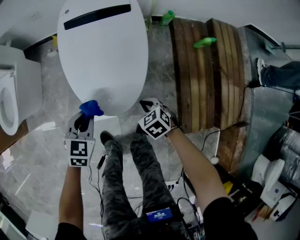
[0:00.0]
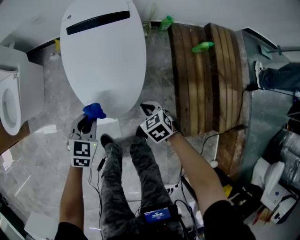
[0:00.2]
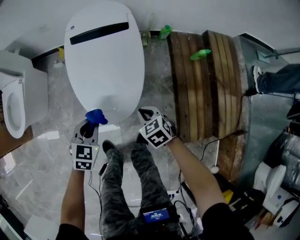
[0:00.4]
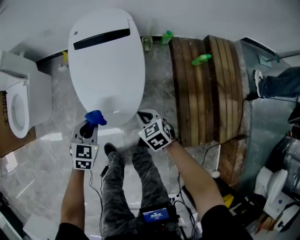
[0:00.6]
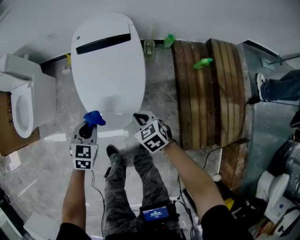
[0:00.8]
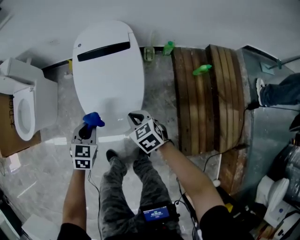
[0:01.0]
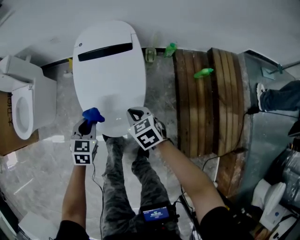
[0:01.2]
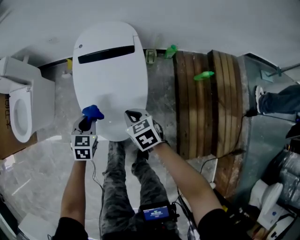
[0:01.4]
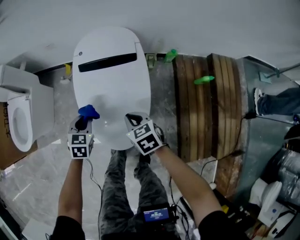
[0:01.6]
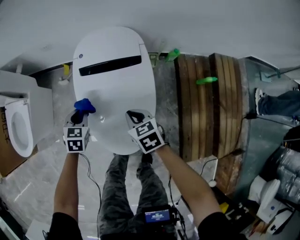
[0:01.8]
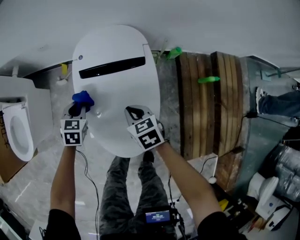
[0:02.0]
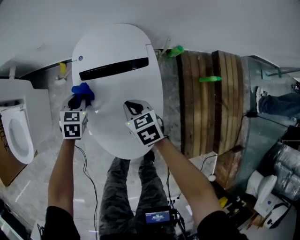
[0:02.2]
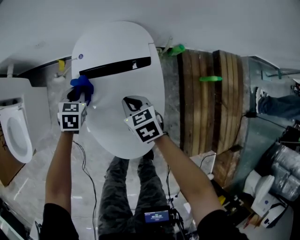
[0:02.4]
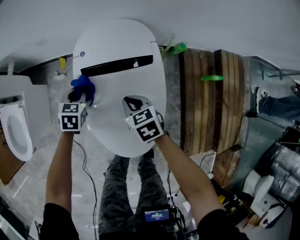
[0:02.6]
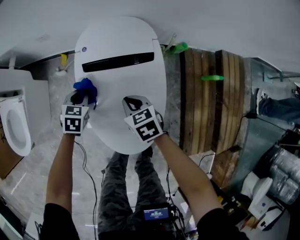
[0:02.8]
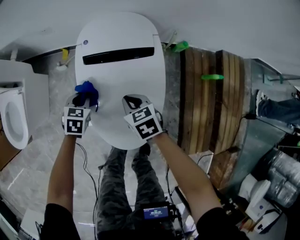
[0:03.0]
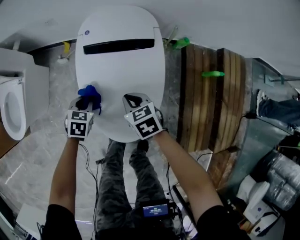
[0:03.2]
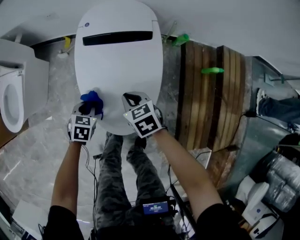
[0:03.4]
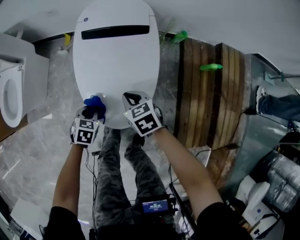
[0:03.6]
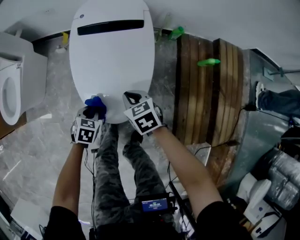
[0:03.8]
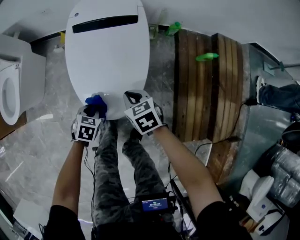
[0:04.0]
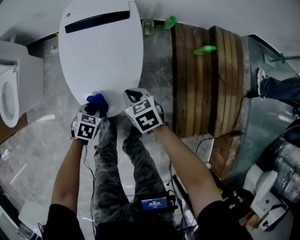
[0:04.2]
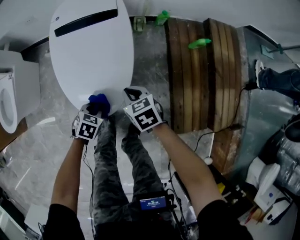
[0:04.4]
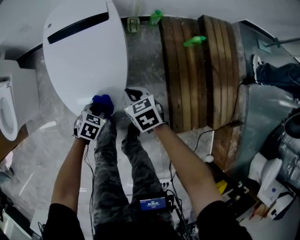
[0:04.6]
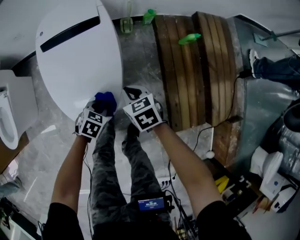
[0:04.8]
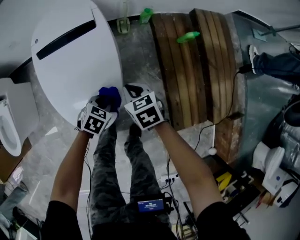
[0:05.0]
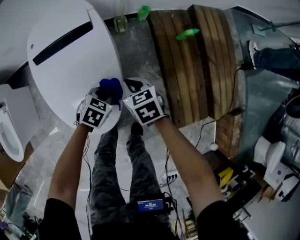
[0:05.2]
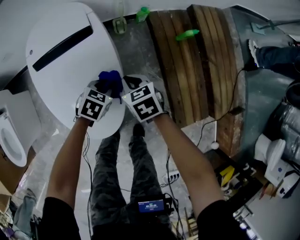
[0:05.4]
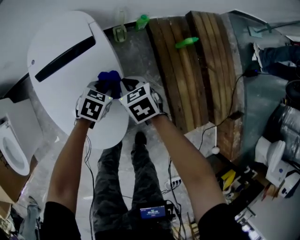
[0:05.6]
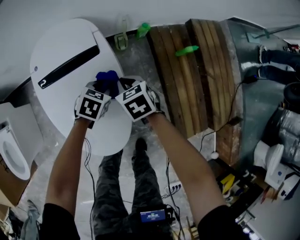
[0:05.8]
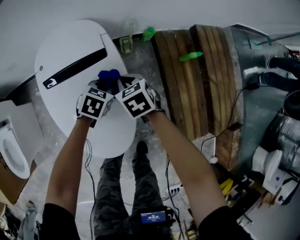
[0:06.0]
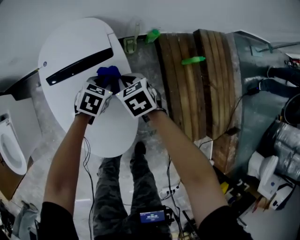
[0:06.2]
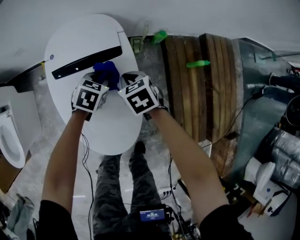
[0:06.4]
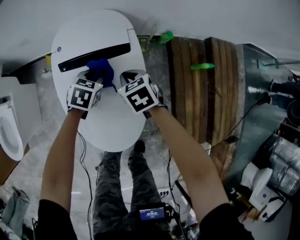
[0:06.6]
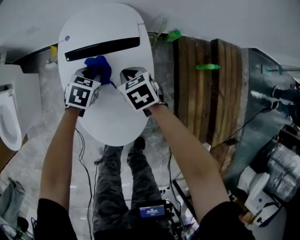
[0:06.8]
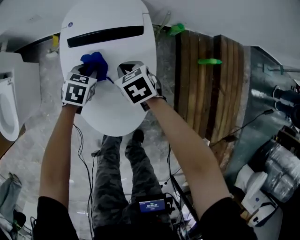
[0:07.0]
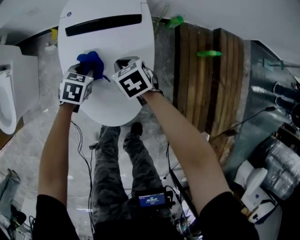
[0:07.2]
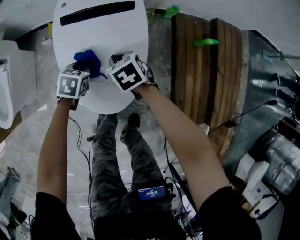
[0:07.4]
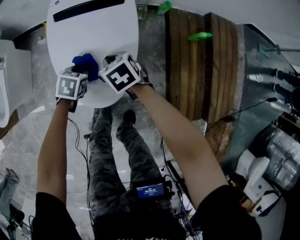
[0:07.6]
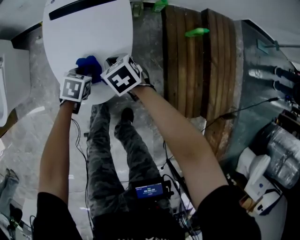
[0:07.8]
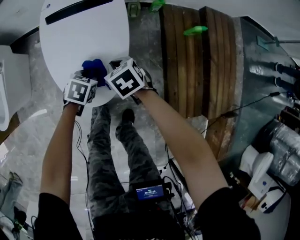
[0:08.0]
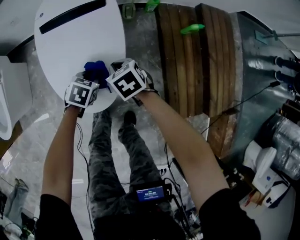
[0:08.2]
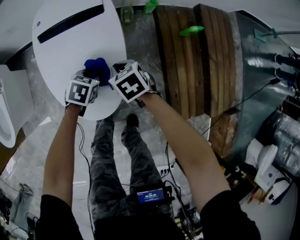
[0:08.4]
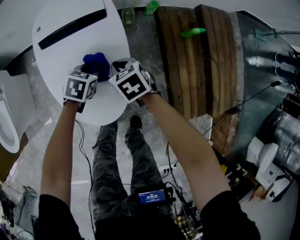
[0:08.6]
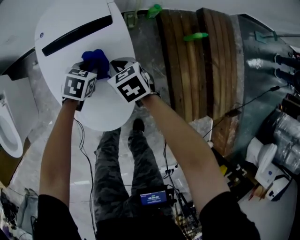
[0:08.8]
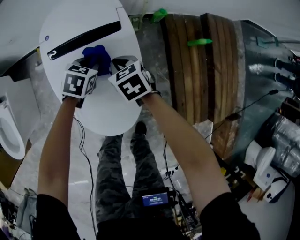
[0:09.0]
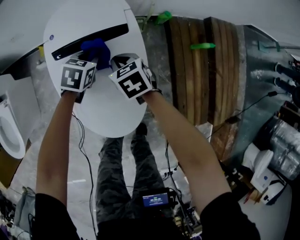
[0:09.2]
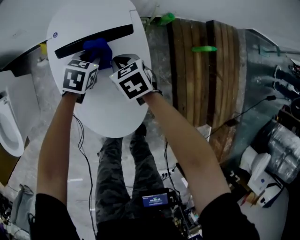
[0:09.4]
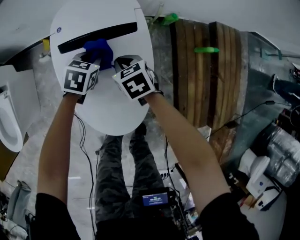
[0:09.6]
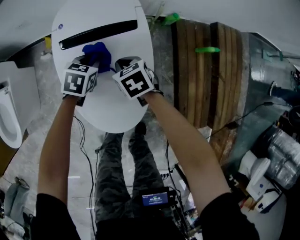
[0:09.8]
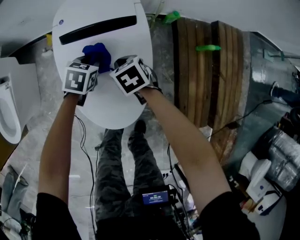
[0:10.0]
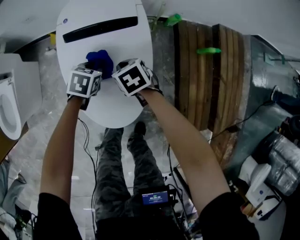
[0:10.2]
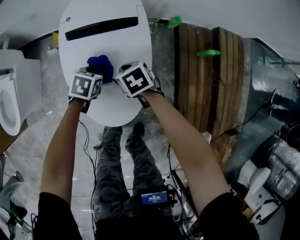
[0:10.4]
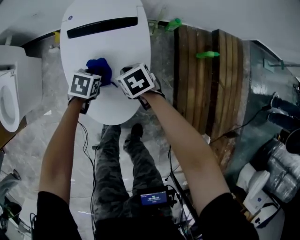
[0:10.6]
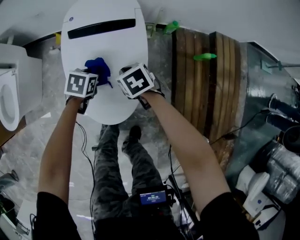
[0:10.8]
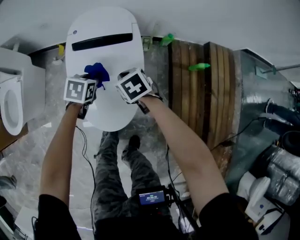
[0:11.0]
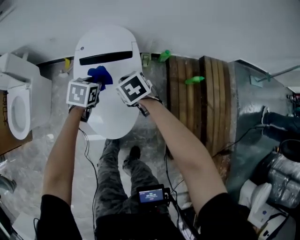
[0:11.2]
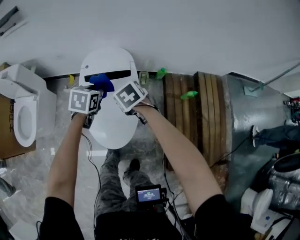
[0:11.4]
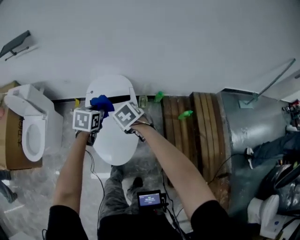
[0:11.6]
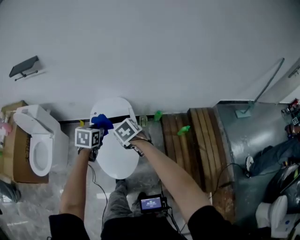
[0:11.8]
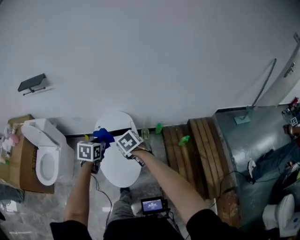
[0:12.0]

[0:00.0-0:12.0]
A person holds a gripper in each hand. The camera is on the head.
0:00.0 to 0:01.6: The right gripper heads forward and upward, covering roughly 20 cm. Meanwhile the left gripper goes about 15 cm forward.
0:01.6 to 0:03.0: The right gripper moves forward, roughly 10 cm; the left gripper travels forward and downward by about 15 cm.
0:03.0 to 0:04.4: Both grippers move backward and to the right, roughly 25 cm.
0:04.4 to 0:06.0: Both grippers travel together forward, about 25 cm.
0:06.0 to 0:07.6: Both grippers move backward and to the left, roughly 20 cm.
0:07.6 to 0:09.0: Both grippers travel together forward, some 15 cm.
0:09.0 to 0:10.4: The grippers both shift backward by roughly 10 cm.
0:10.4 to 0:12.0: The grippers both shift upward by roughly 40 cm. The left gripper turns by roughly 20 degrees.

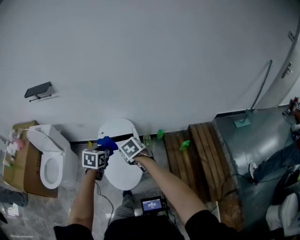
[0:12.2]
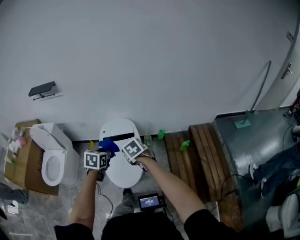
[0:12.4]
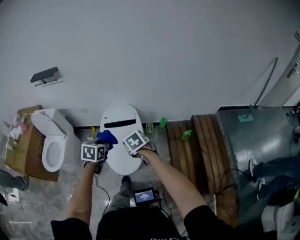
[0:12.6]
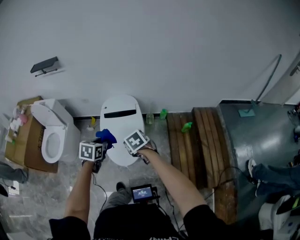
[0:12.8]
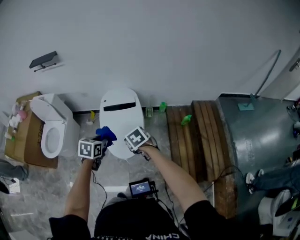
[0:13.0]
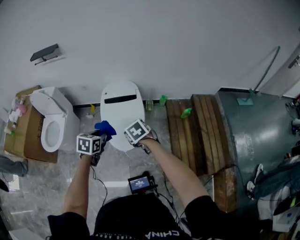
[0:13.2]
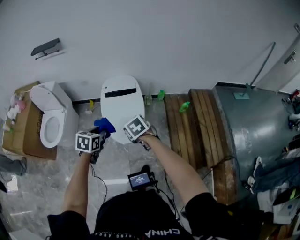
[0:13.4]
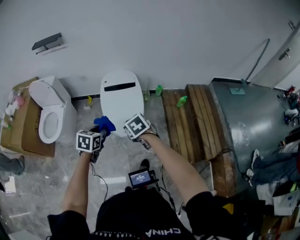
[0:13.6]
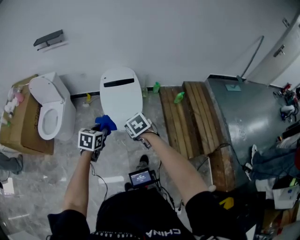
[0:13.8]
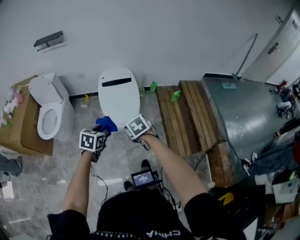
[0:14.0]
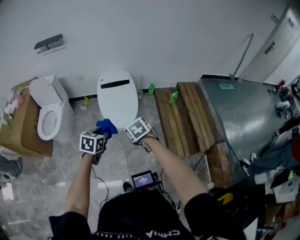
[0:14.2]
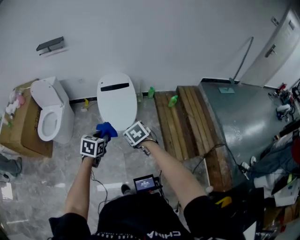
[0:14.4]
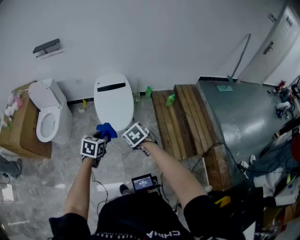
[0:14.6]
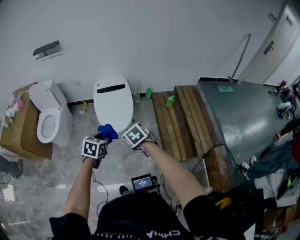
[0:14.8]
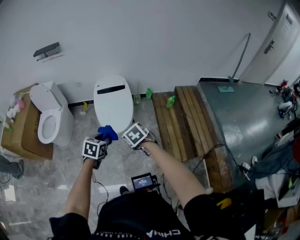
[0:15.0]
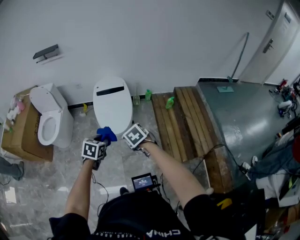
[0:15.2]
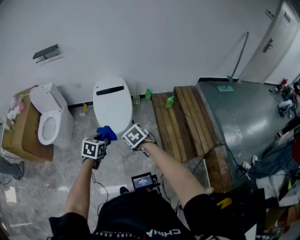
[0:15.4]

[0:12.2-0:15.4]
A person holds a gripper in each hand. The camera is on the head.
0:12.2 to 0:13.8: Both grippers move backward and to the left, some 35 cm.
0:13.8 to 0:15.4: The two grippers go roughly 15 cm backward and to the right.

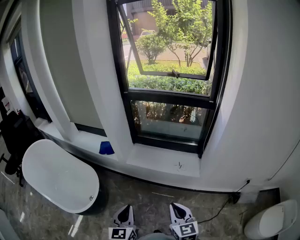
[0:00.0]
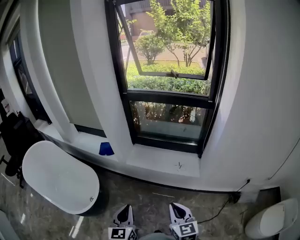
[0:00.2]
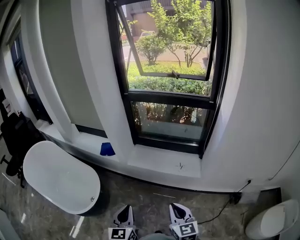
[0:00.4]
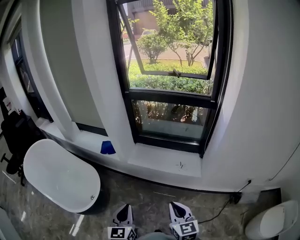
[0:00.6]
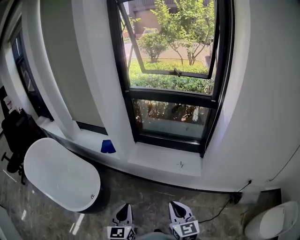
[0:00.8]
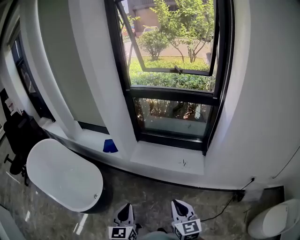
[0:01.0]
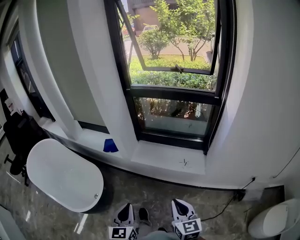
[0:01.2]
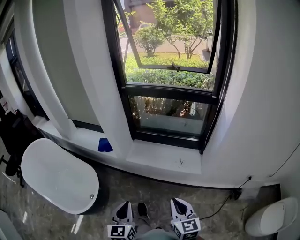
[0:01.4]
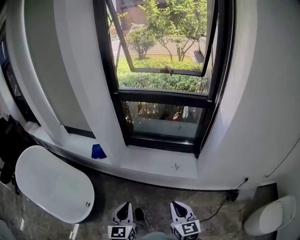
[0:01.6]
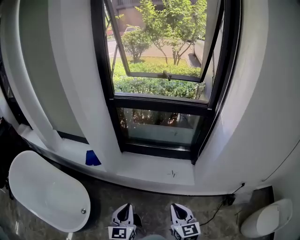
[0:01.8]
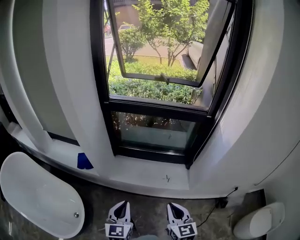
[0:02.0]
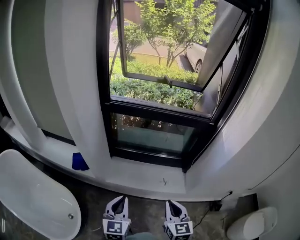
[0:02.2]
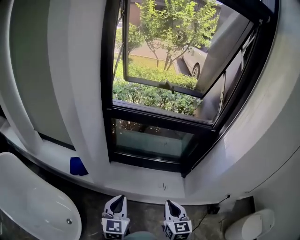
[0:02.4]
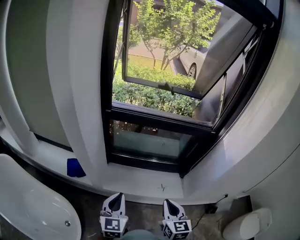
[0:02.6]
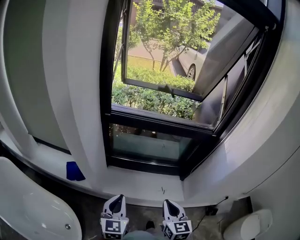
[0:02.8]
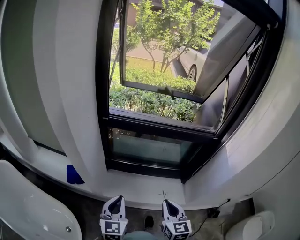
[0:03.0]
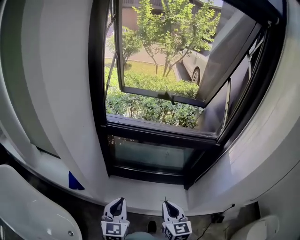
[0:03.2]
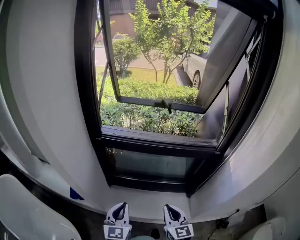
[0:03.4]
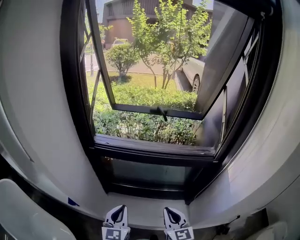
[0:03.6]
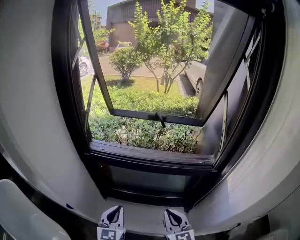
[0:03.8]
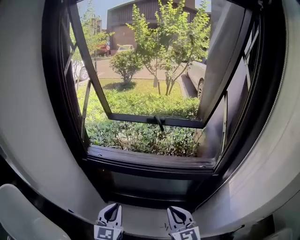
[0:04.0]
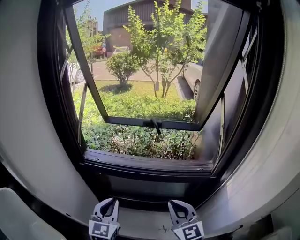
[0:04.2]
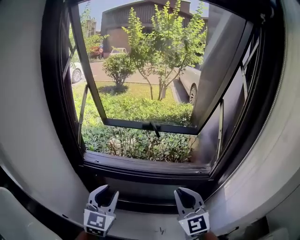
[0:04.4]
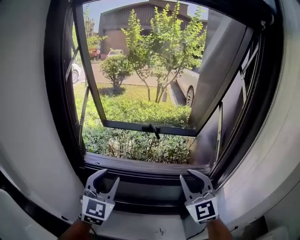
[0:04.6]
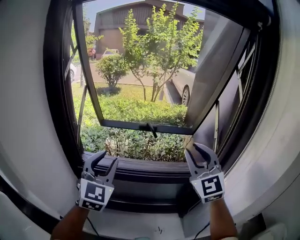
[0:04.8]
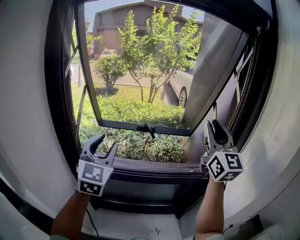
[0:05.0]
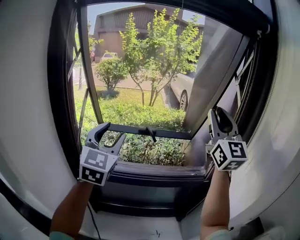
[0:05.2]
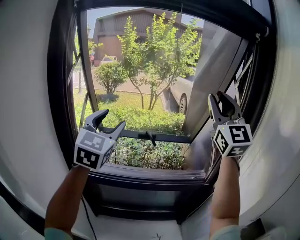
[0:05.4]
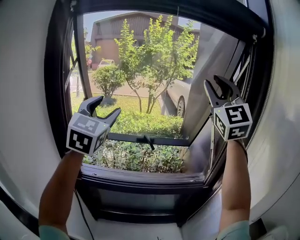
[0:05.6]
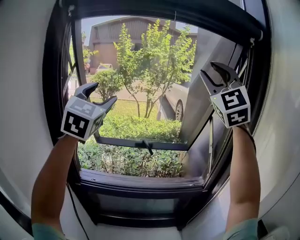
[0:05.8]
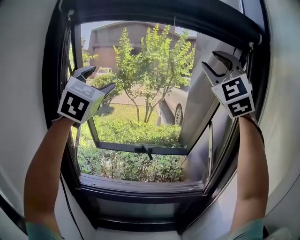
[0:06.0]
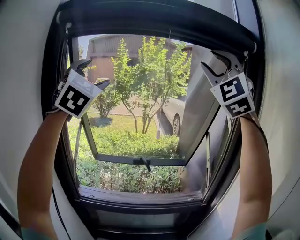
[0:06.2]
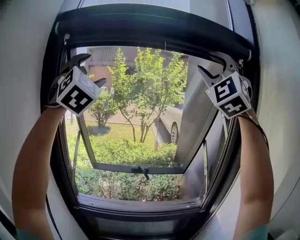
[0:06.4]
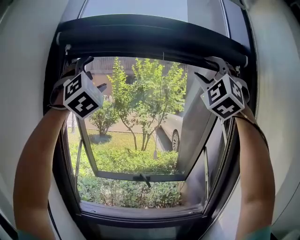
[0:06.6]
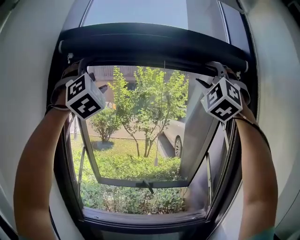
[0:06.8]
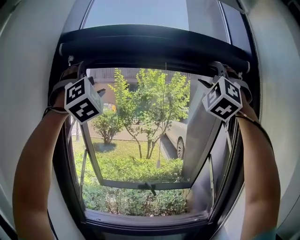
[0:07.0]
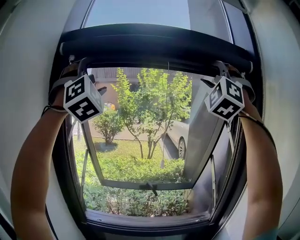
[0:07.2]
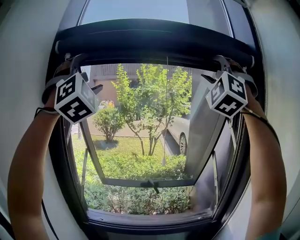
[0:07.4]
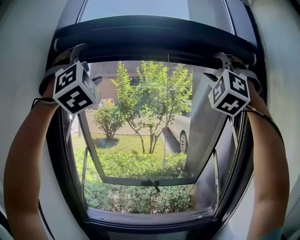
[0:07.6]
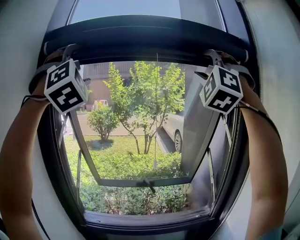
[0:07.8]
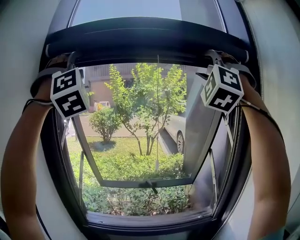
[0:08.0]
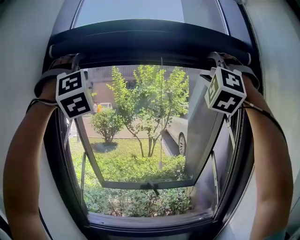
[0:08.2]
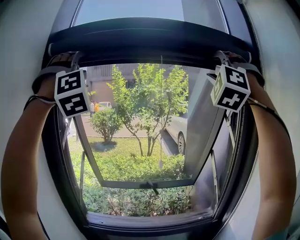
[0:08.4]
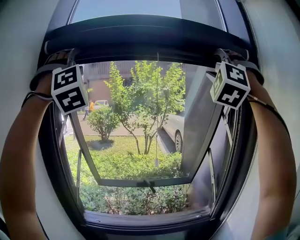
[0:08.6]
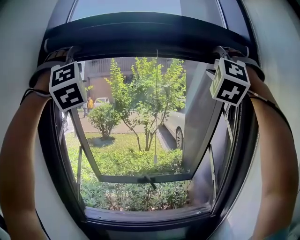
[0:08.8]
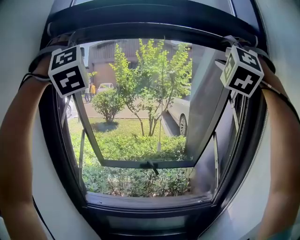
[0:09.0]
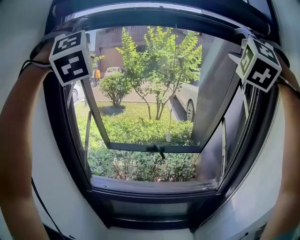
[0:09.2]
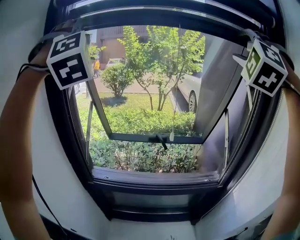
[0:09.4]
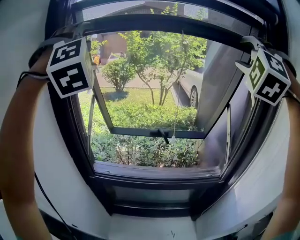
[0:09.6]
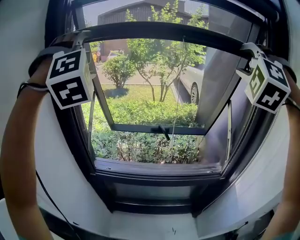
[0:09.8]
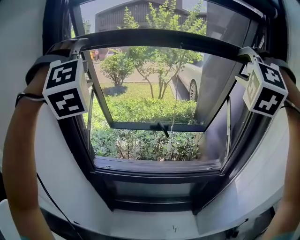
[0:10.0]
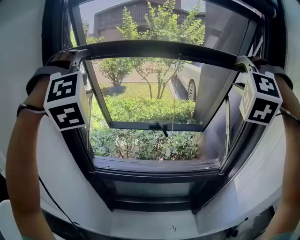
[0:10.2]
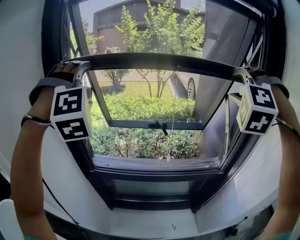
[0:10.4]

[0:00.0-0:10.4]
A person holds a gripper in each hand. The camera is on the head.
0:00.0 to 0:01.4: The right gripper changes place by roughly 5 cm.
0:01.4 to 0:03.0: Both grippers travel together forward, some 35 cm.
0:03.0 to 0:04.4: The two grippers go some 30 cm forward, upward and to the right. The right gripper turns by about 30 degrees.
0:04.4 to 0:06.0: The grippers both shift upward by some 50 cm. The right gripper twists roughly 50 degrees counterclockwise, seen from behind, and opens, while the left gripper turns by roughly 30 degrees, and opens up.
0:06.0 to 0:07.4: The left gripper is displaced upward by about 15 cm, and twists roughly 40 degrees clockwise, seen from behind; the right gripper shifts about 10 cm upward, and rotates some 30 degrees.
0:07.4 to 0:09.0: The left gripper turns by about 20 degrees.
0:09.0 to 0:10.4: The two grippers go roughly 25 cm downward. The right gripper turns by approximately 30 degrees. The left gripper changes its angle by some 30 degrees.
